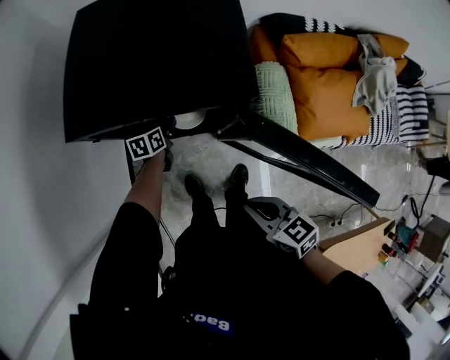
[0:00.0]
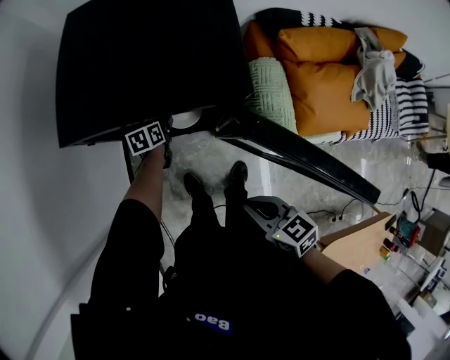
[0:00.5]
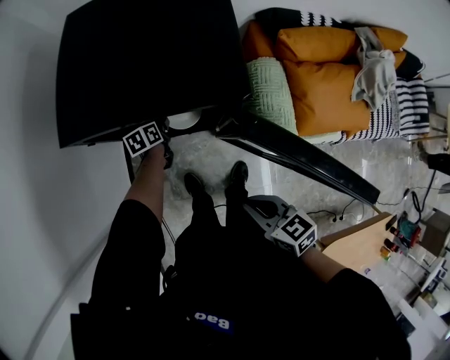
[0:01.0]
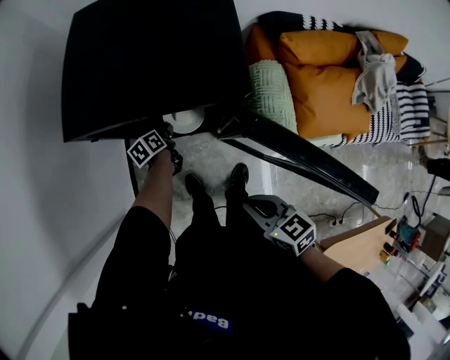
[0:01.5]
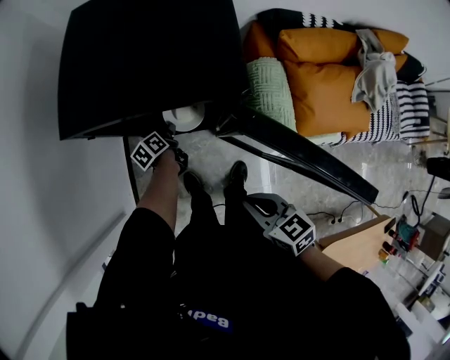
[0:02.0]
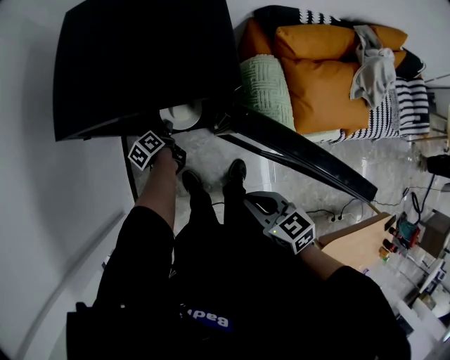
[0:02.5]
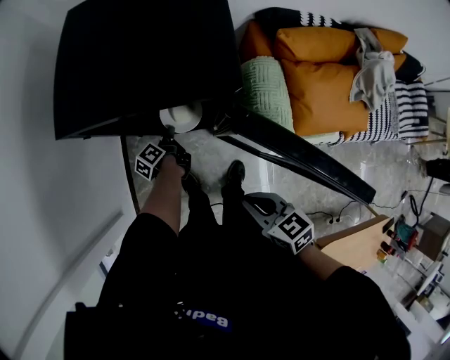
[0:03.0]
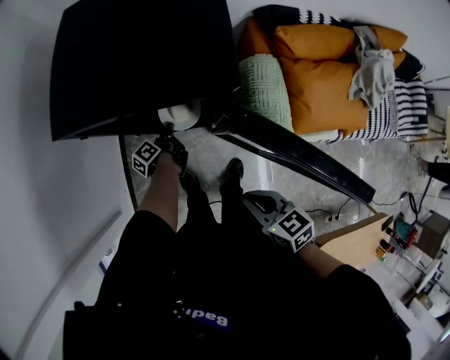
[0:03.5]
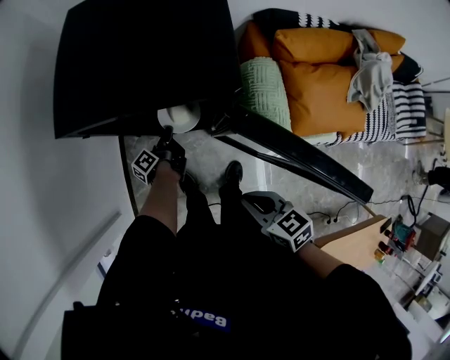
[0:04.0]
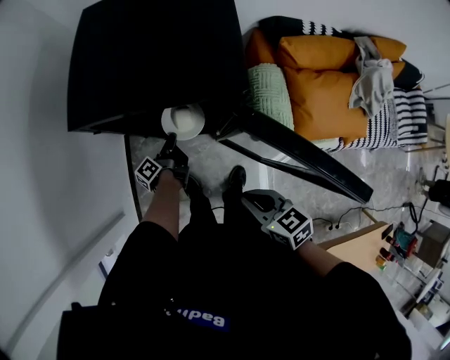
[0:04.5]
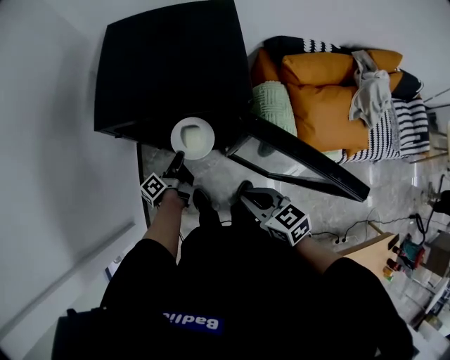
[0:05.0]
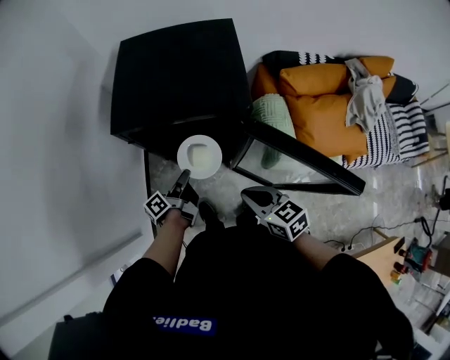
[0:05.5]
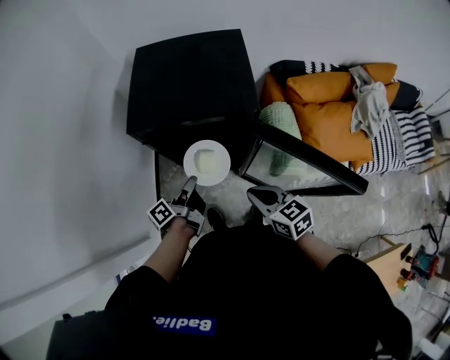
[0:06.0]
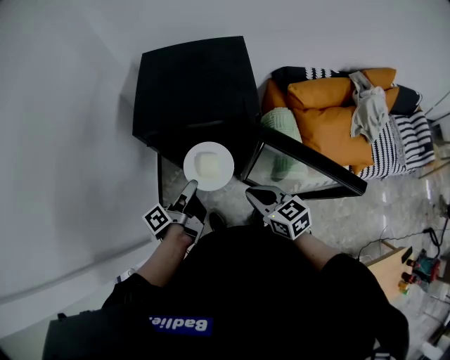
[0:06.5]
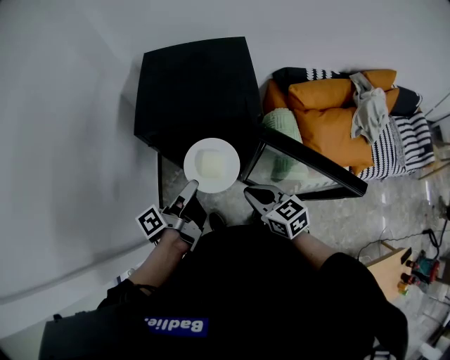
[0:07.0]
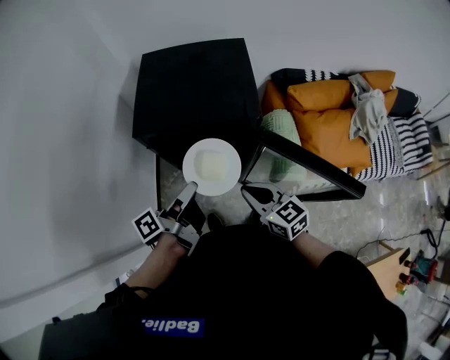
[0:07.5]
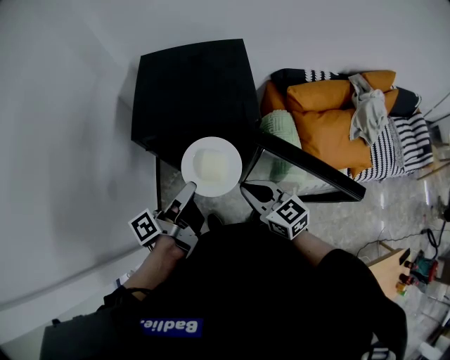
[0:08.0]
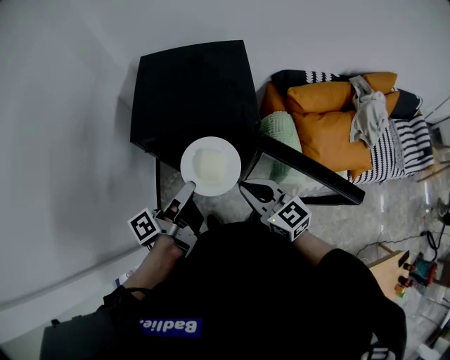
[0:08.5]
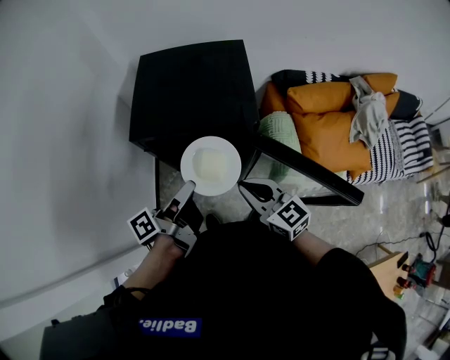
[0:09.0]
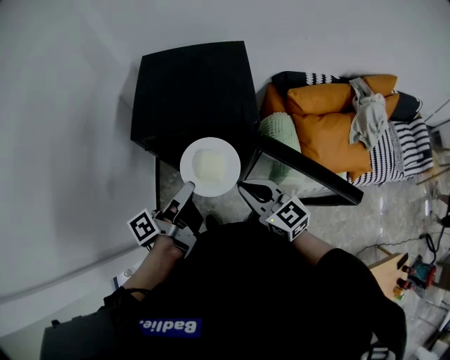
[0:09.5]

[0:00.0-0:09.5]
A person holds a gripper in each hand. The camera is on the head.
0.0 to 2.0 s: The left gripper turns by some 30 degrees, and closes its fingers.
2.0 to 4.0 s: The left gripper turns by roughly 30 degrees.
4.0 to 5.5 s: The left gripper heads upward and backward, covering about 20 cm; the right gripper shifts roughly 5 cm upward.
5.5 to 7.5 s: The left gripper is displaced upward by roughly 20 cm. Meanwhile the right gripper travels upward by roughly 5 cm.
7.5 to 9.5 s: The grippers move only a little.

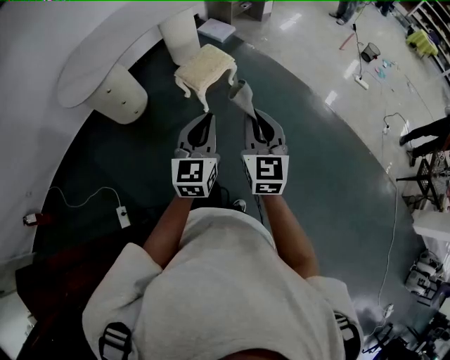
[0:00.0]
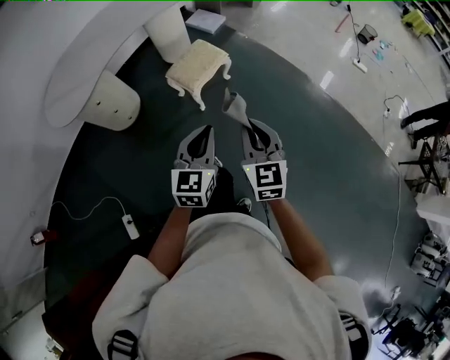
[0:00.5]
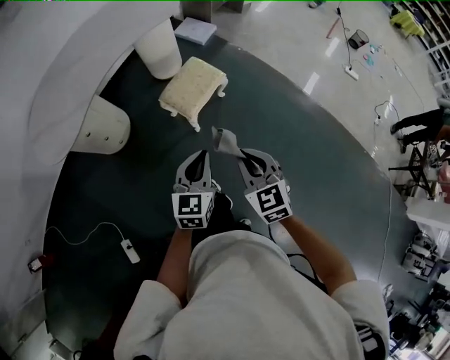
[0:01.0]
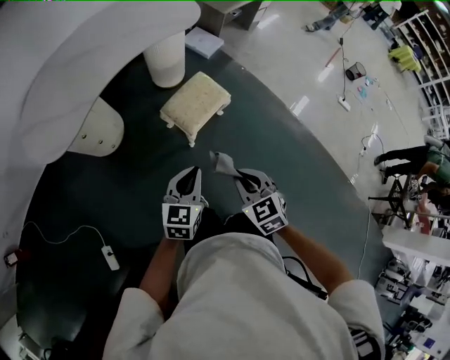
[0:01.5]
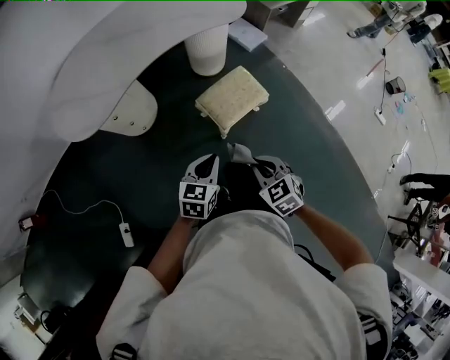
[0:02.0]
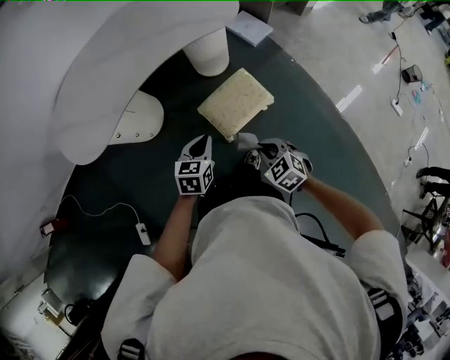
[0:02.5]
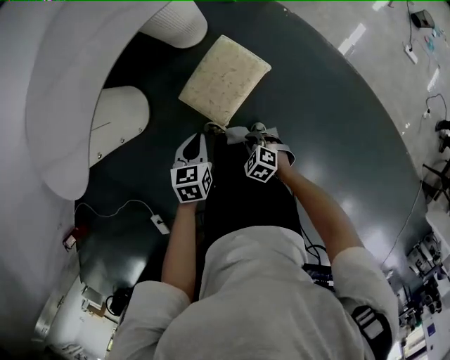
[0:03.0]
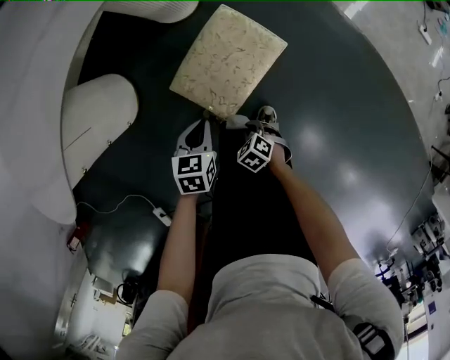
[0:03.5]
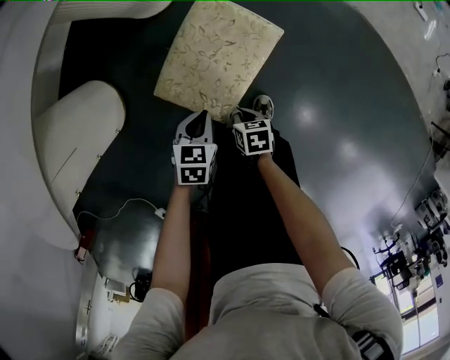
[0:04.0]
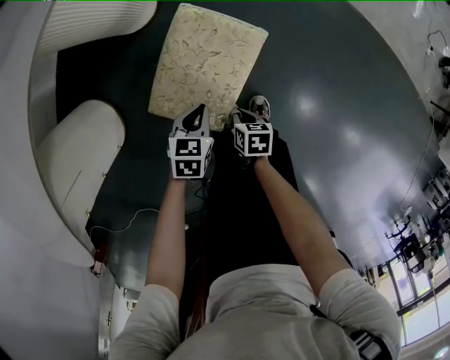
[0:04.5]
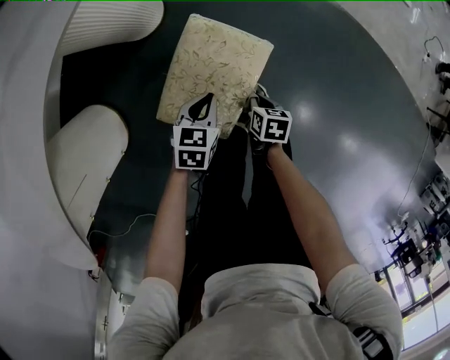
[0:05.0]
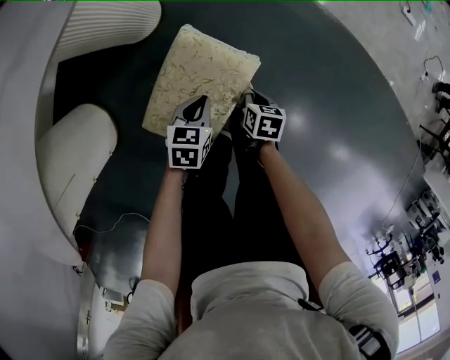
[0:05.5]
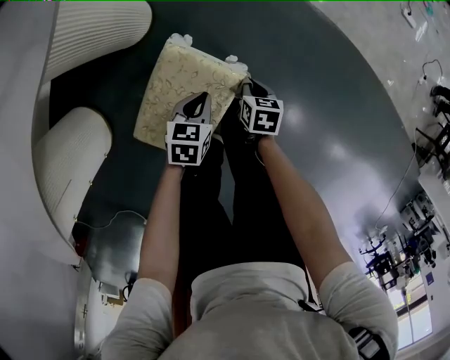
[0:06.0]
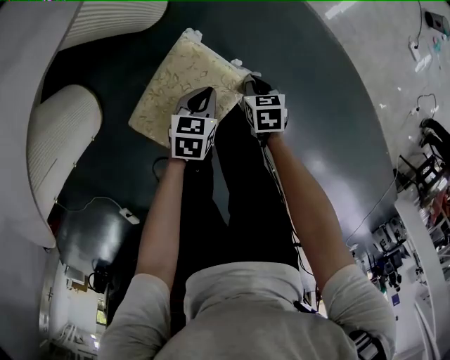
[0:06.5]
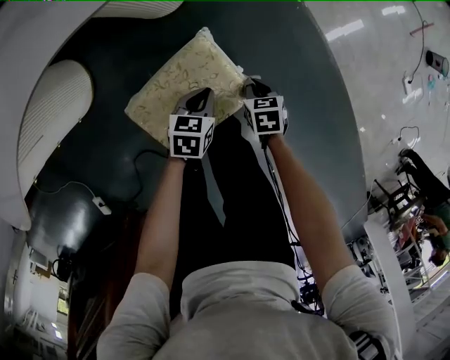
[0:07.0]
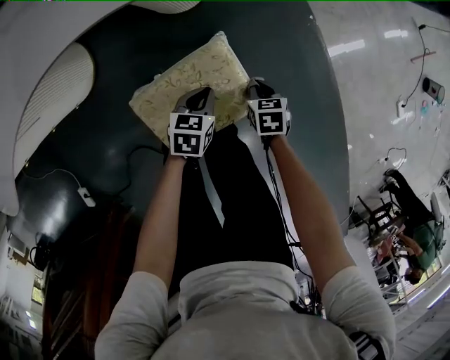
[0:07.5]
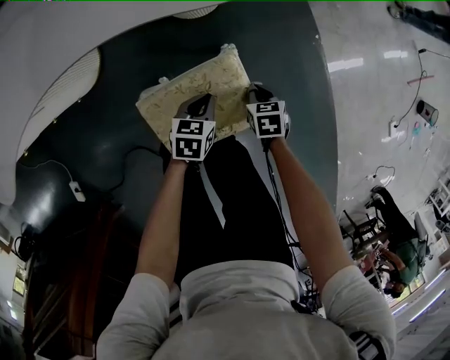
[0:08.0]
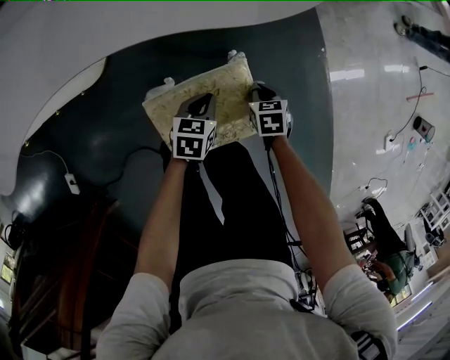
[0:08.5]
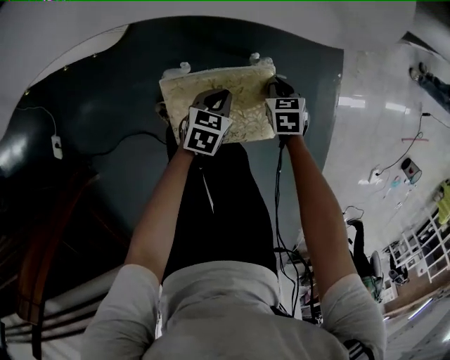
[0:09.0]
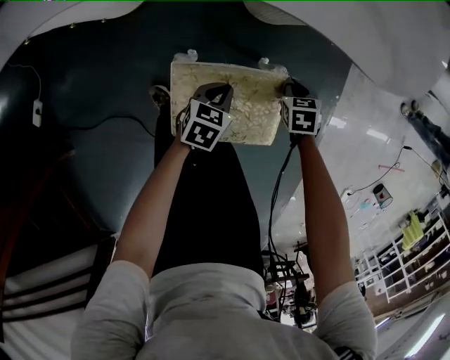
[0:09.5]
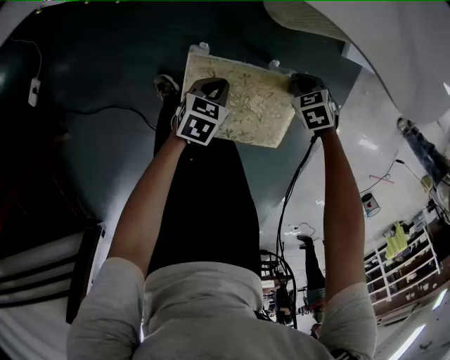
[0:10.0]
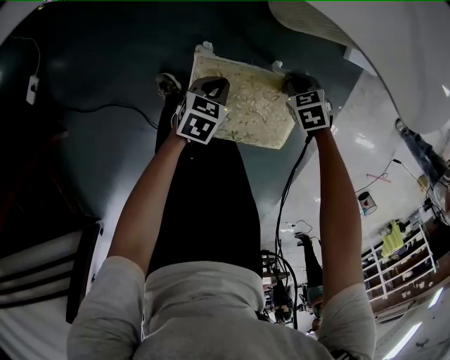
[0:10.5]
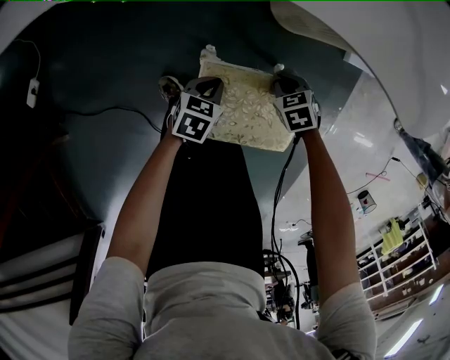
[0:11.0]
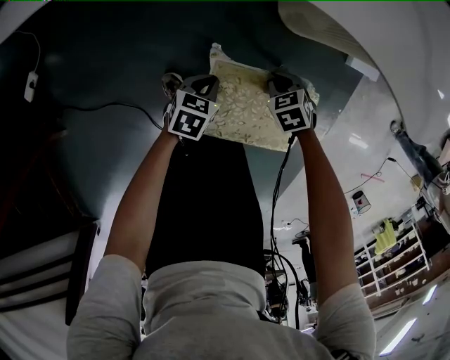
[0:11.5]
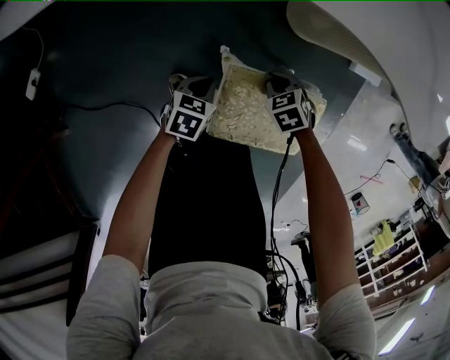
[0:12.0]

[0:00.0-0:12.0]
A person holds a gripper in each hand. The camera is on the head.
0.0 to 2.0 s: The grippers both shift forward, downward and to the left by some 35 cm. The right gripper tips its fingers downward by some 40 degrees, while the left gripper rotates roughly 30 degrees.
2.0 to 4.0 s: The right gripper moves downward, about 50 cm, and rotates around the line of its fingers by roughly 70 degrees, clockwise from behind. Meanwhile the left gripper heads downward and forward, covering roughly 50 cm, and changes its angle by about 30 degrees.
4.0 to 6.0 s: The right gripper shifts by some 30 cm. The left gripper moves roughly 25 cm.
6.0 to 8.0 s: The left gripper changes place by approximately 10 cm, and changes its angle by approximately 40 degrees, while the right gripper shifts by approximately 15 cm, and twists some 50 degrees counterclockwise, seen from behind.
8.0 to 10.0 s: The right gripper moves some 15 cm, and rolls counterclockwise, seen from behind, by roughly 60 degrees. The left gripper moves about 15 cm, and swivels some 20 degrees.
10.0 to 12.0 s: The right gripper shifts by some 20 cm. The left gripper ends up approximately 15 cm from where it was.

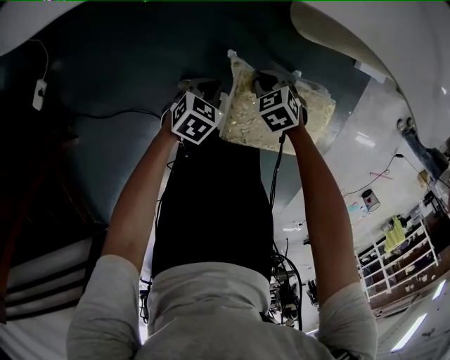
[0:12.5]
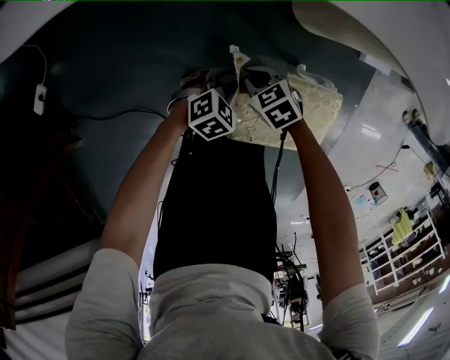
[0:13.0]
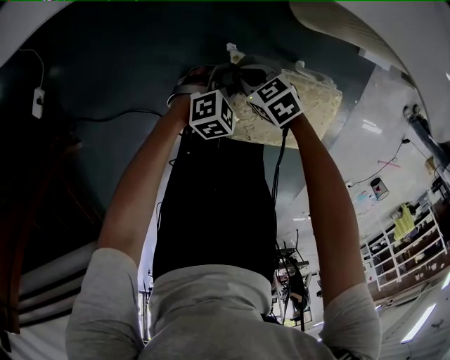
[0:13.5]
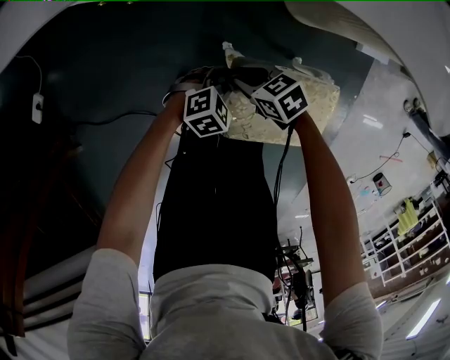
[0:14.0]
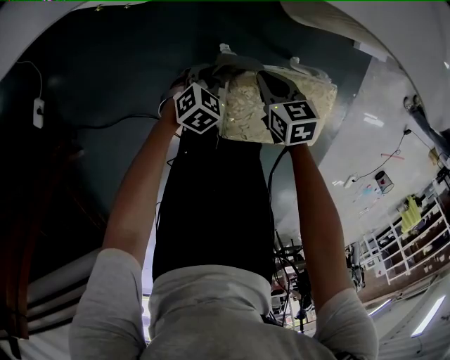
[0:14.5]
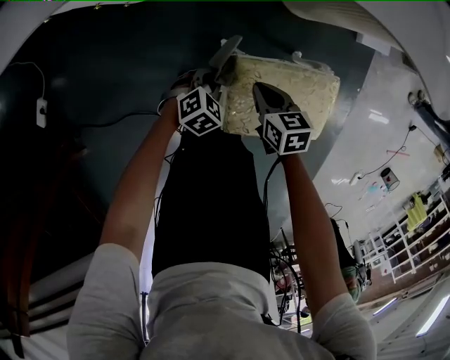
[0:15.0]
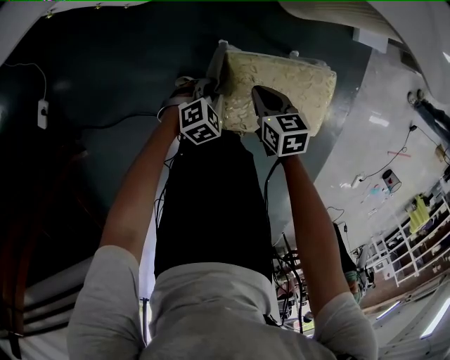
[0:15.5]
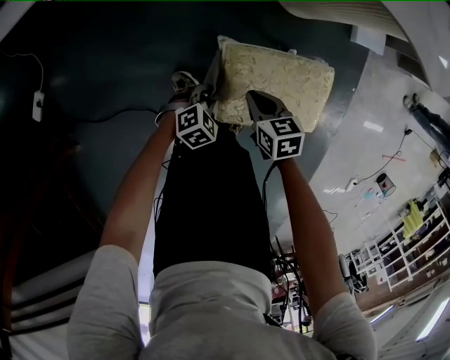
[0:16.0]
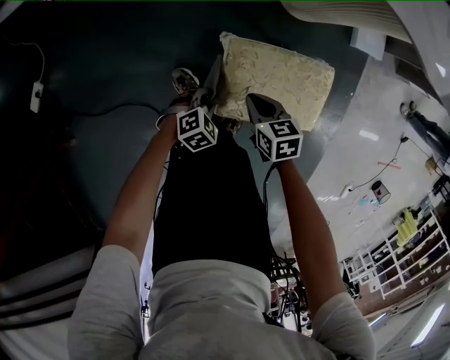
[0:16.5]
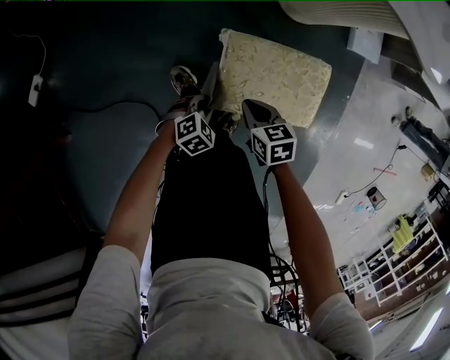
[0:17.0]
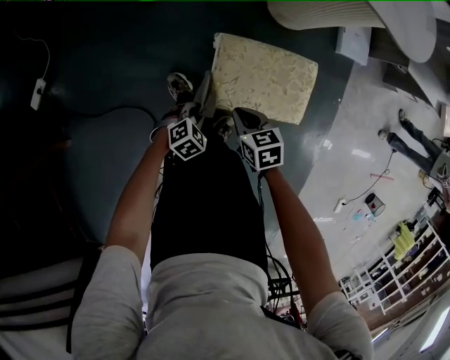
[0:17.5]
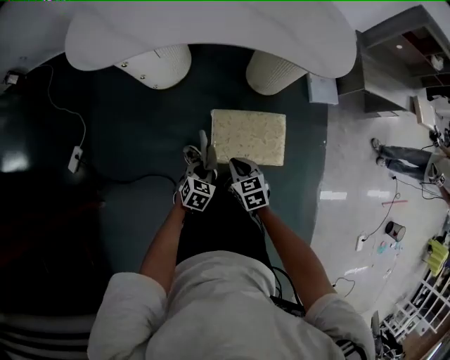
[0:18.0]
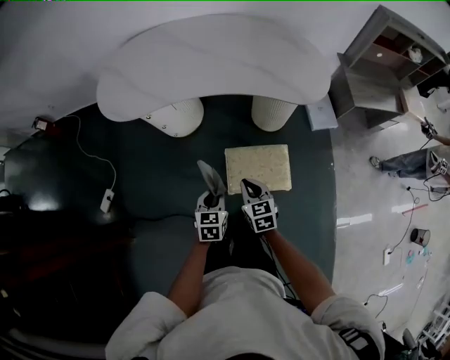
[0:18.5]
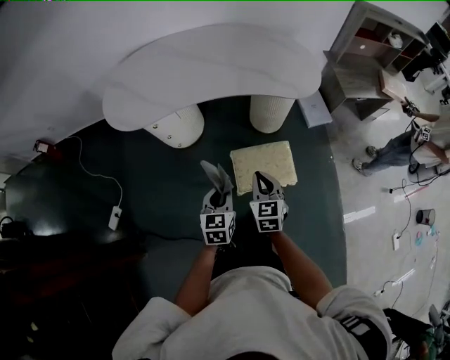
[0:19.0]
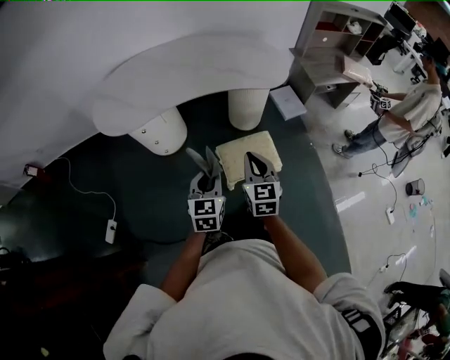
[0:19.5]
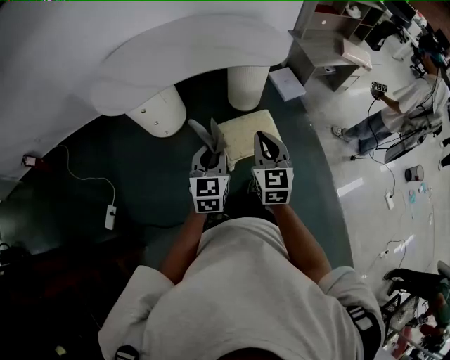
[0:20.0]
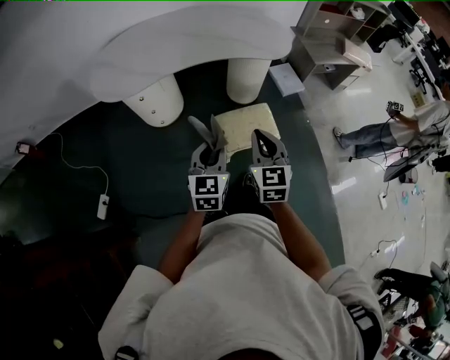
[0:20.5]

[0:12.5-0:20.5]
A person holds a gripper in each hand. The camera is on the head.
12.5 to 14.5 s: The right gripper changes its angle by roughly 40 degrees; the left gripper opens and closes again.
14.5 to 16.5 s: The grippers both shift backward by some 15 cm.
16.5 to 18.5 s: The two grippers go about 40 cm upward. The right gripper swivels roughly 30 degrees; the left gripper changes its angle by approximately 50 degrees.
18.5 to 20.5 s: The grippers both shift upward and backward by about 25 cm. The right gripper swivels about 30 degrees, while the left gripper swivels approximately 30 degrees.
